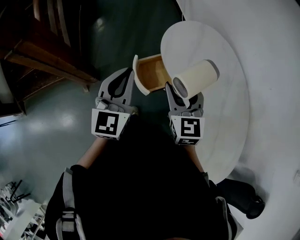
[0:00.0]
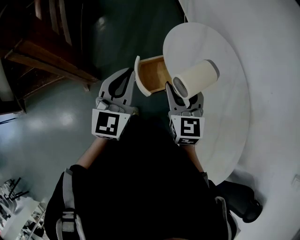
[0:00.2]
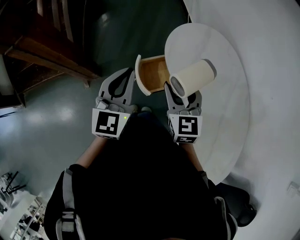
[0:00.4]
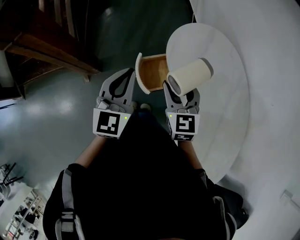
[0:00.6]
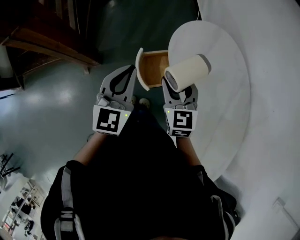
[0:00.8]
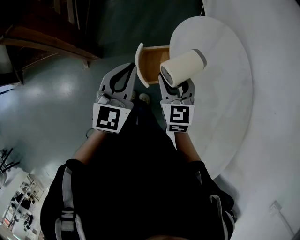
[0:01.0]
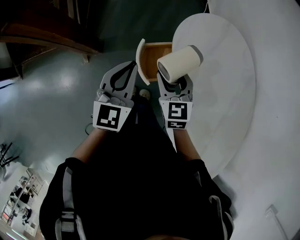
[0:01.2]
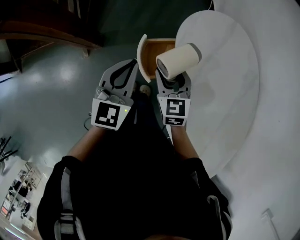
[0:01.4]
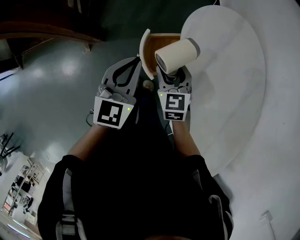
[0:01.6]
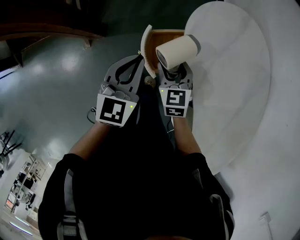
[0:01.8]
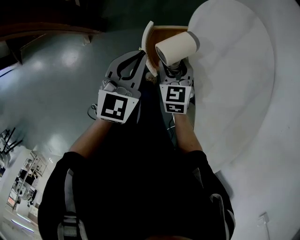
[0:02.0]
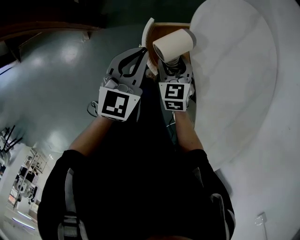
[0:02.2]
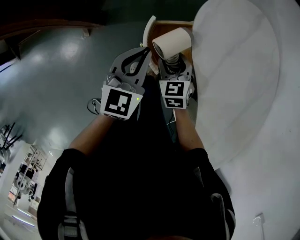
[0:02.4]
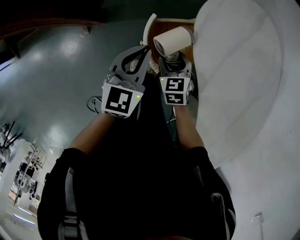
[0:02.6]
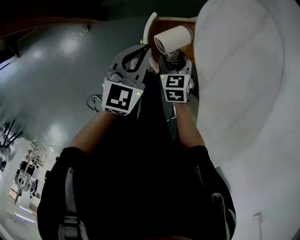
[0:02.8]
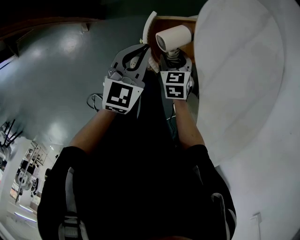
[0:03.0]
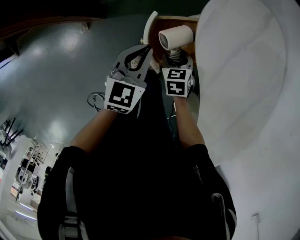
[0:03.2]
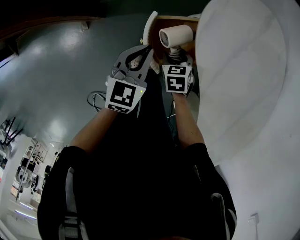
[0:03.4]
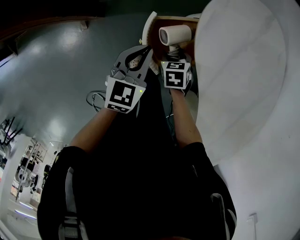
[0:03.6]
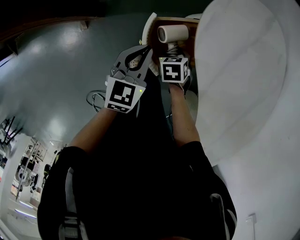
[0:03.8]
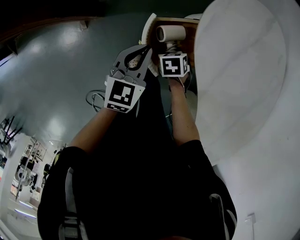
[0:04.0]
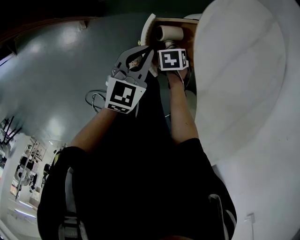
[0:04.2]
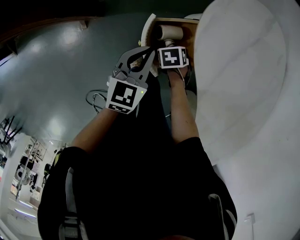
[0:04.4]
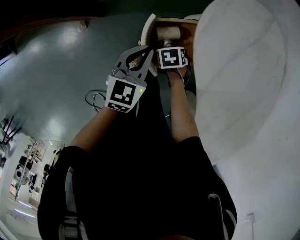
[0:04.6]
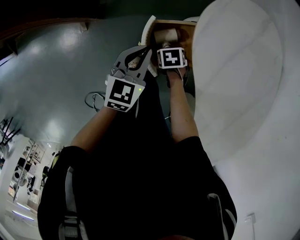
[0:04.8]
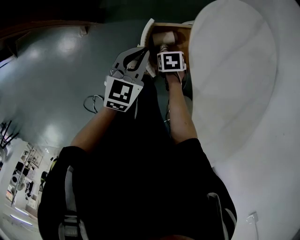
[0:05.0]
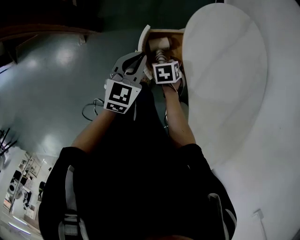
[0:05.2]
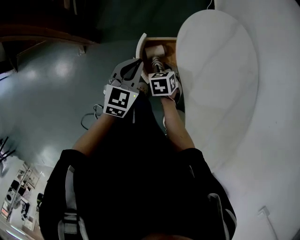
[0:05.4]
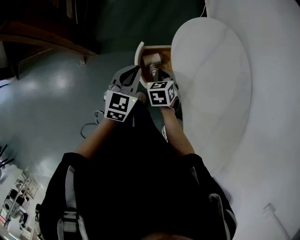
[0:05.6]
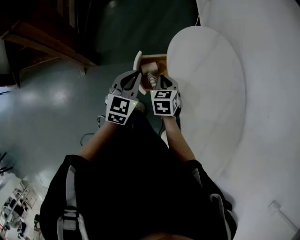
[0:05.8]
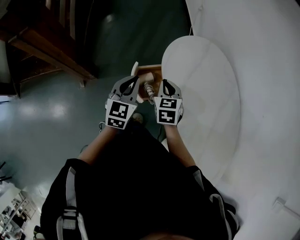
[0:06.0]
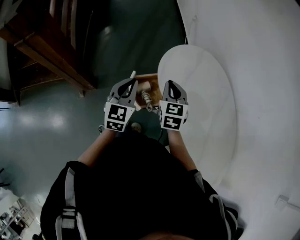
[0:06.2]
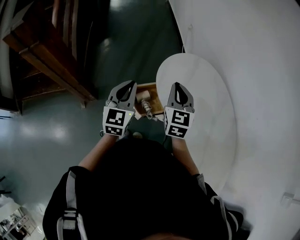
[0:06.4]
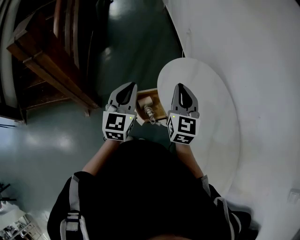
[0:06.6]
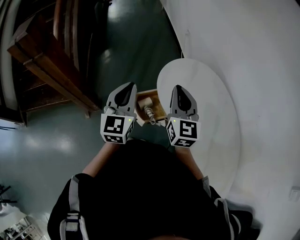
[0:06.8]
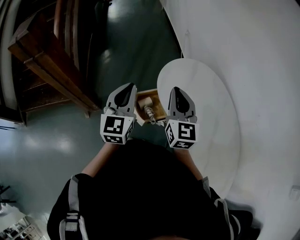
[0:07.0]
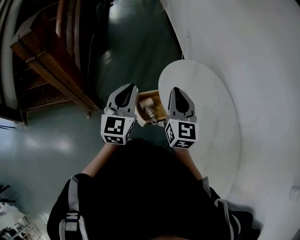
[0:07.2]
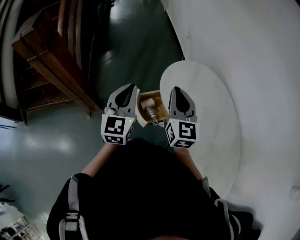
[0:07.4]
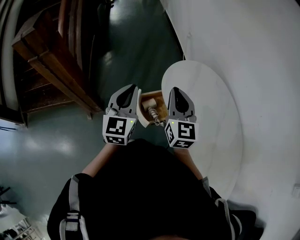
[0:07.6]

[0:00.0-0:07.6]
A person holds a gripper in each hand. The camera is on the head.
0:00.0 to 0:01.6: The left gripper moves downward, approximately 10 cm, while the right gripper travels downward by approximately 20 cm, and changes its angle by roughly 20 degrees.
0:01.6 to 0:03.0: Both grippers travel together downward, approximately 15 cm. The right gripper swivels some 20 degrees.
0:03.0 to 0:04.6: The right gripper is displaced downward by roughly 10 cm, and rotates about 30 degrees.
0:04.6 to 0:06.0: The left gripper is displaced upward by approximately 15 cm. The right gripper moves upward, approximately 30 cm, tilts its fingers roughly 40 degrees upward, and closes.
0:06.0 to 0:07.6: The two grippers go some 15 cm upward. The right gripper angles its fingers upward, by about 40 degrees.

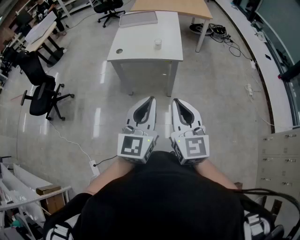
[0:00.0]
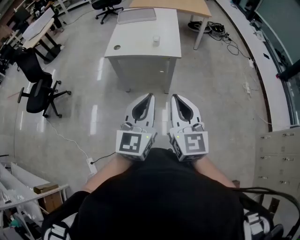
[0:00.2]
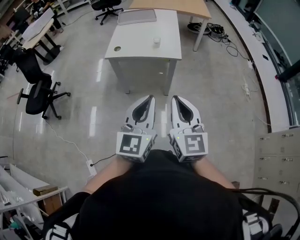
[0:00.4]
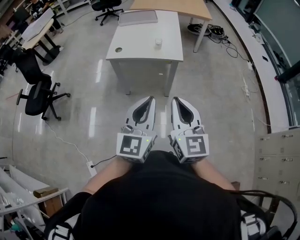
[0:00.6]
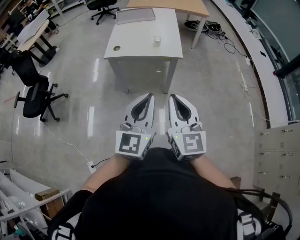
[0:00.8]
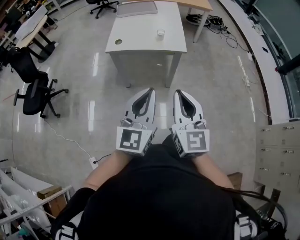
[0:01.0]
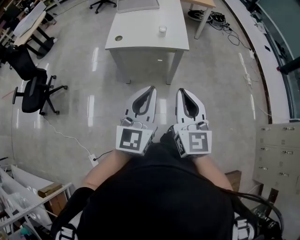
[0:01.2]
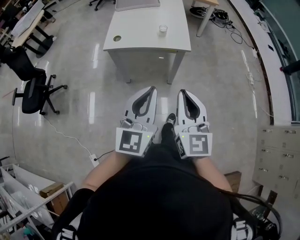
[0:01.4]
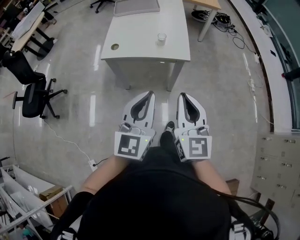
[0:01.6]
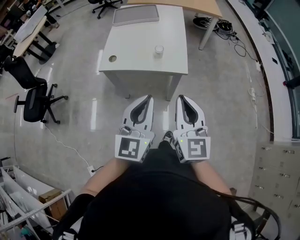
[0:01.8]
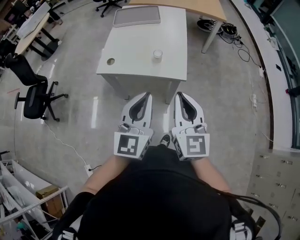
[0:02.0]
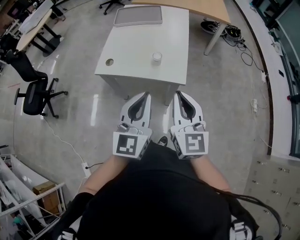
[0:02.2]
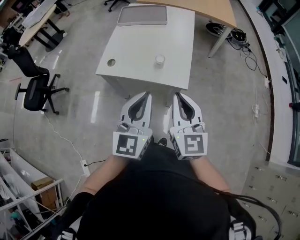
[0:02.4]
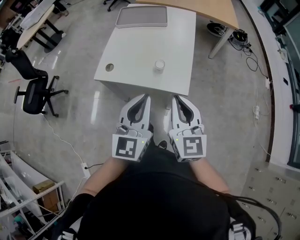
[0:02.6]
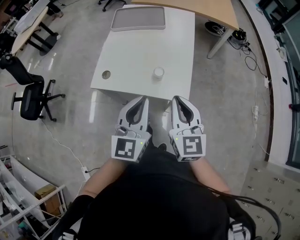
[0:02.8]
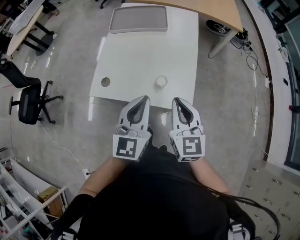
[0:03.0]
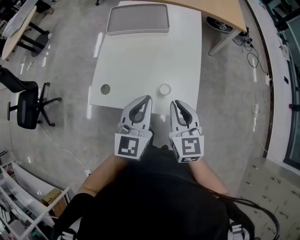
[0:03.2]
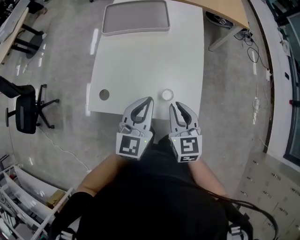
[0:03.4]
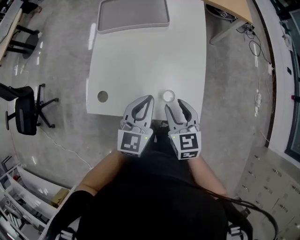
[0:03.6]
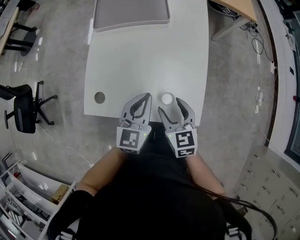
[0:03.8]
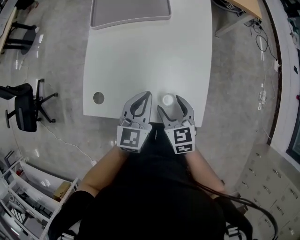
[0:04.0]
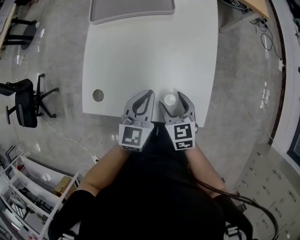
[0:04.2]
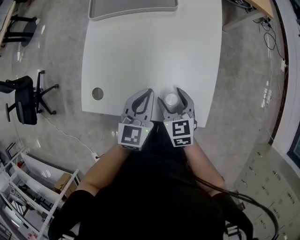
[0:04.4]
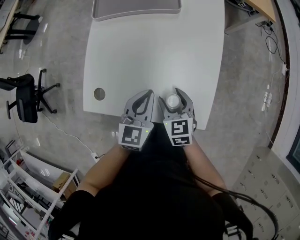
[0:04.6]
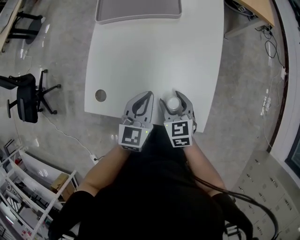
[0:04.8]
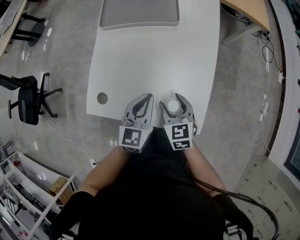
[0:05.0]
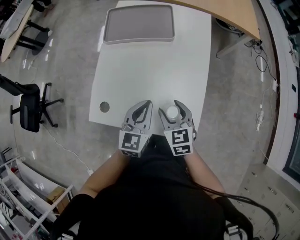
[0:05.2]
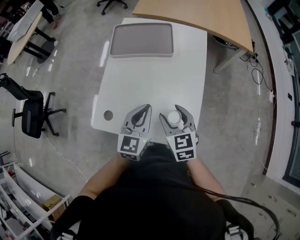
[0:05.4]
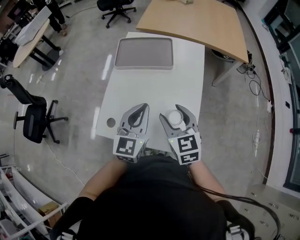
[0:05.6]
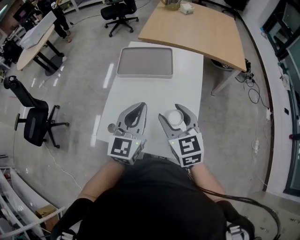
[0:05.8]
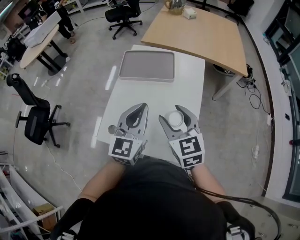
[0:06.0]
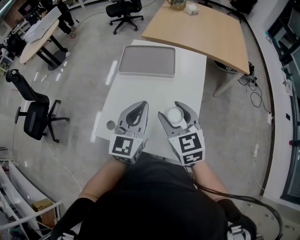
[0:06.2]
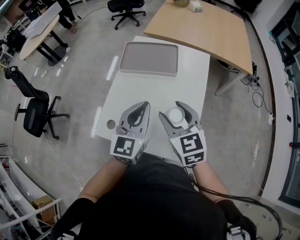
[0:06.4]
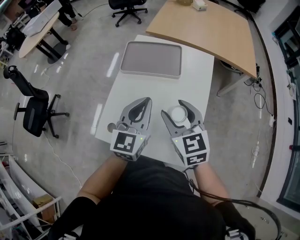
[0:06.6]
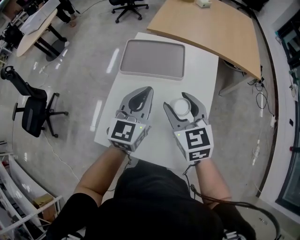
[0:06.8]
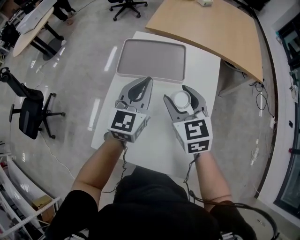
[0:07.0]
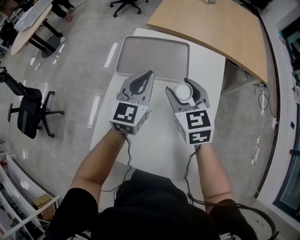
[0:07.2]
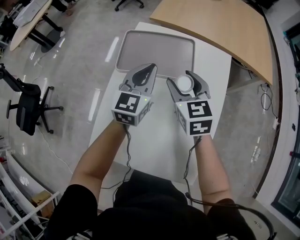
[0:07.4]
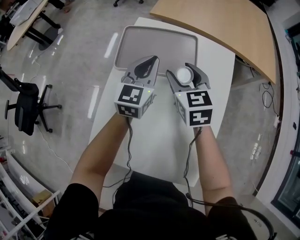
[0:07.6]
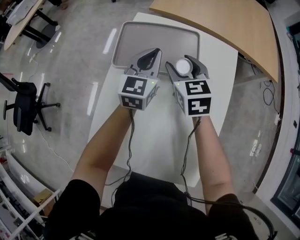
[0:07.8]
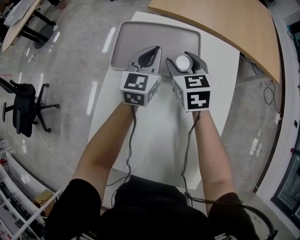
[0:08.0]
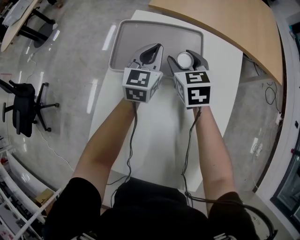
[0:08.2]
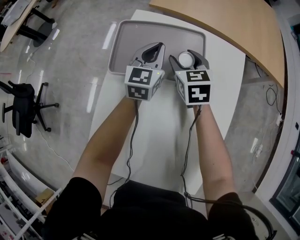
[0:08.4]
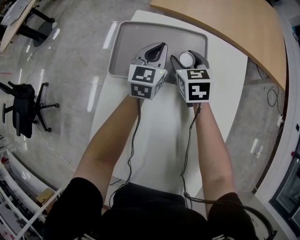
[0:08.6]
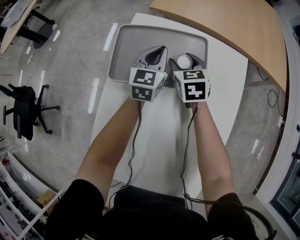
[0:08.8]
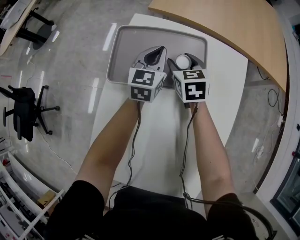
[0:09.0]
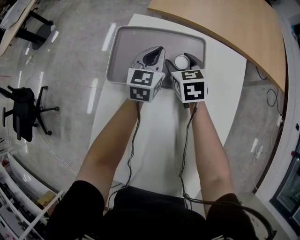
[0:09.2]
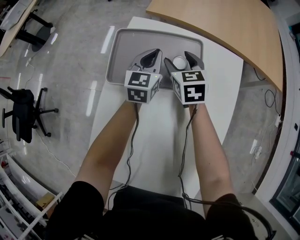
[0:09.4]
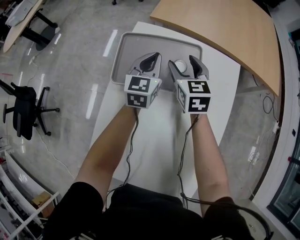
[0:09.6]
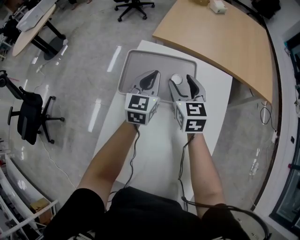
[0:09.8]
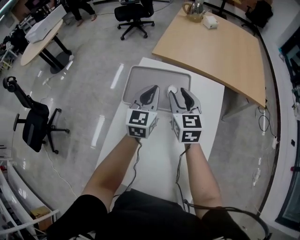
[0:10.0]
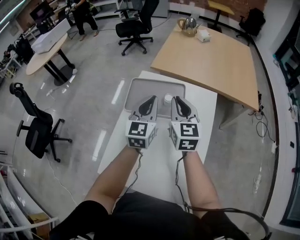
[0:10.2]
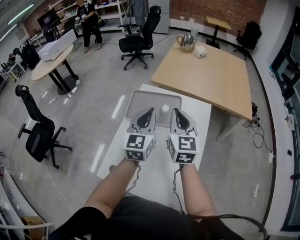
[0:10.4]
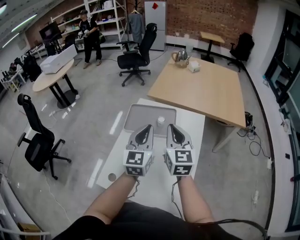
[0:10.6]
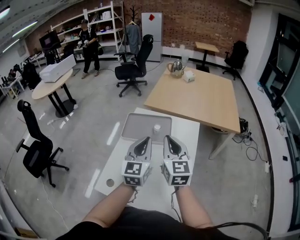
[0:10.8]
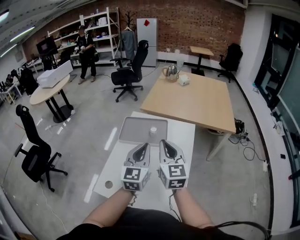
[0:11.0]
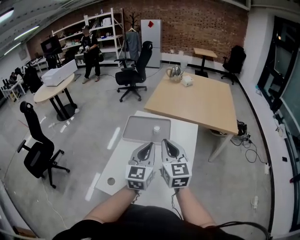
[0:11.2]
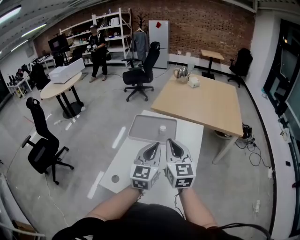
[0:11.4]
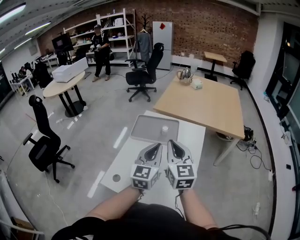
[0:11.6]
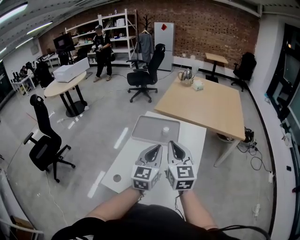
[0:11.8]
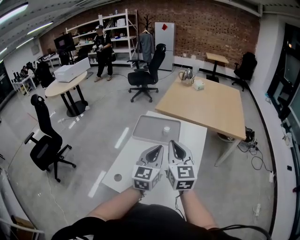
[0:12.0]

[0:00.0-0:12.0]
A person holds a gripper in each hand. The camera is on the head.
0:00.0 to 0:01.6: Both grippers travel together forward, some 20 cm.
0:01.6 to 0:03.0: Both grippers move forward, approximately 40 cm.
0:03.0 to 0:04.4: Both grippers move downward and forward, approximately 30 cm. The right gripper rotates some 30 degrees, and opens up. Meanwhile the left gripper rotates roughly 20 degrees.
0:04.4 to 0:06.0: The grippers both shift upward by about 30 cm. The right gripper changes its angle by approximately 20 degrees. Meanwhile the left gripper changes its angle by some 20 degrees.
0:06.0 to 0:07.6: Both grippers travel together forward and downward, about 35 cm.
0:07.6 to 0:09.0: The two grippers go about 20 cm forward and downward.
0:09.0 to 0:10.4: The grippers both shift upward and backward by about 40 cm. The right gripper tips its fingers upward by roughly 30 degrees, and closes its fingers.
0:10.4 to 0:12.0: Both grippers move backward, roughly 20 cm.

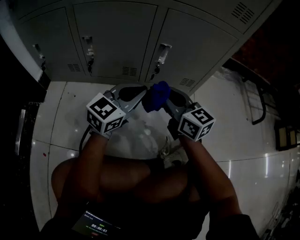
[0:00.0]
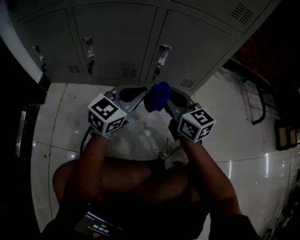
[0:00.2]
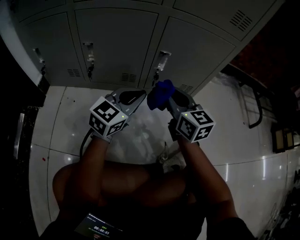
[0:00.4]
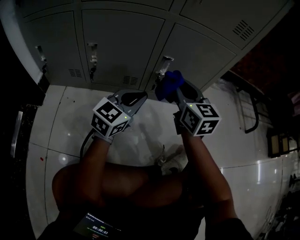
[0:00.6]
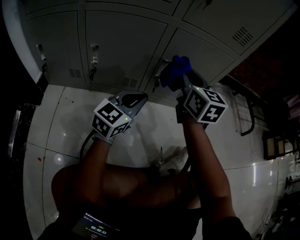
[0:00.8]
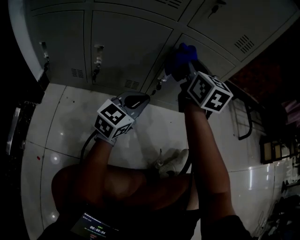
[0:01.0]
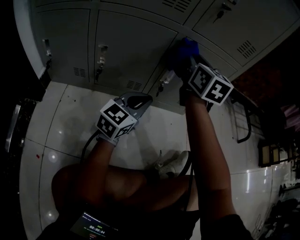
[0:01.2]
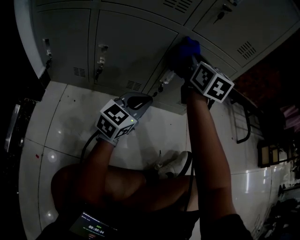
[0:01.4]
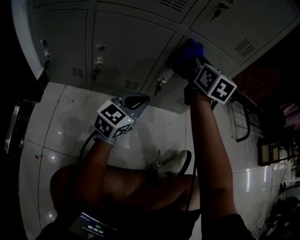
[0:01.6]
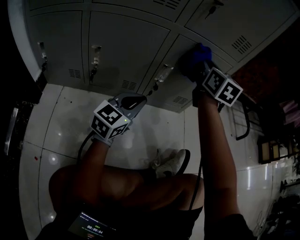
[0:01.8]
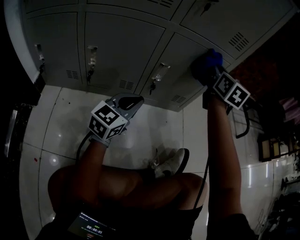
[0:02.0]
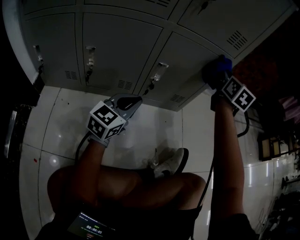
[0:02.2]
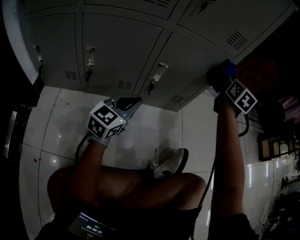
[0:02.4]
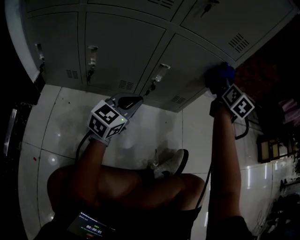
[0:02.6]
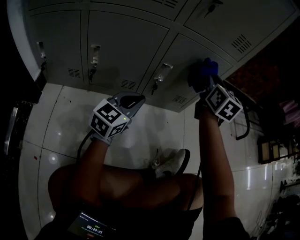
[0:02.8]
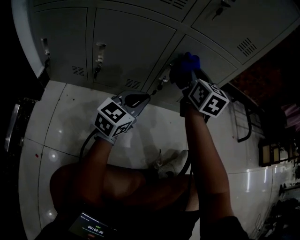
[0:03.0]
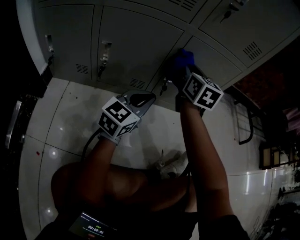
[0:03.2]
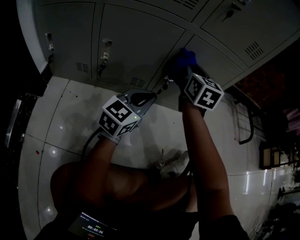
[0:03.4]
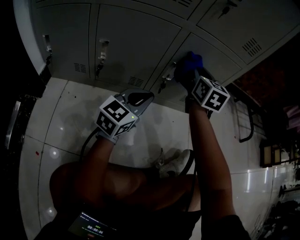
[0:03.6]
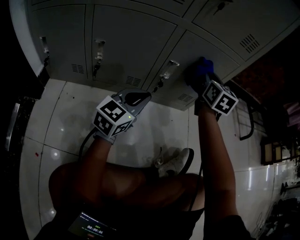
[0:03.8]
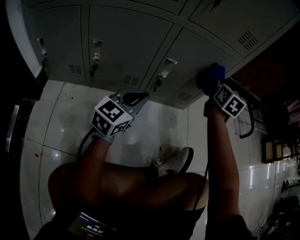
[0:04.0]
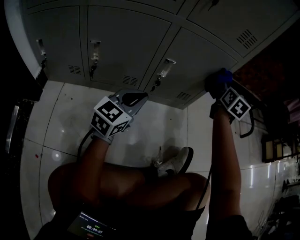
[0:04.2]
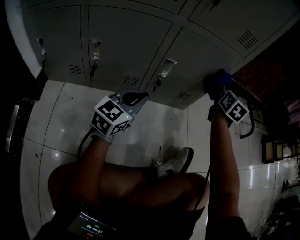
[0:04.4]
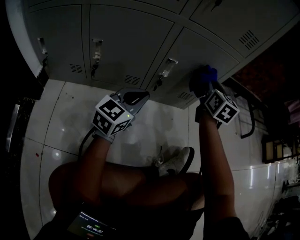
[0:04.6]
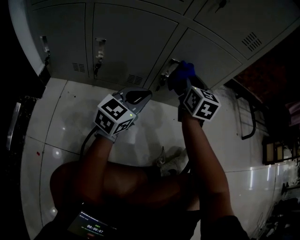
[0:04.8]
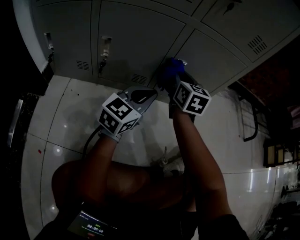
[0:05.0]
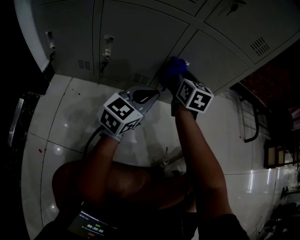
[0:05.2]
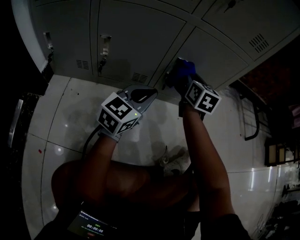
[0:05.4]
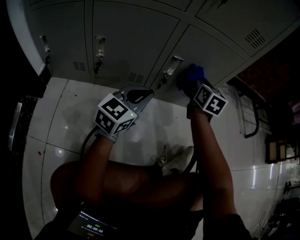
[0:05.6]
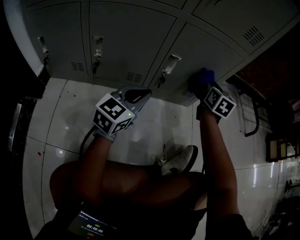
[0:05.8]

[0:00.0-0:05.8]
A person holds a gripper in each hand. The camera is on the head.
0:00.0 to 0:01.4: The right gripper goes roughly 25 cm upward and forward, and changes its angle by approximately 30 degrees.
0:01.4 to 0:02.8: The right gripper goes roughly 15 cm to the right.
0:02.8 to 0:04.4: The right gripper moves to the right and downward, some 10 cm.
0:04.4 to 0:05.8: The right gripper moves downward, some 5 cm, and reaches about 25 cm to the left, then returns.
